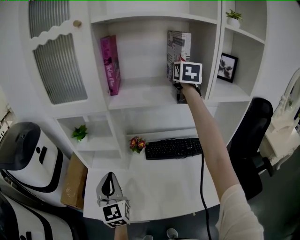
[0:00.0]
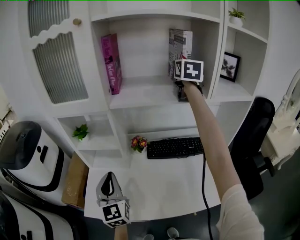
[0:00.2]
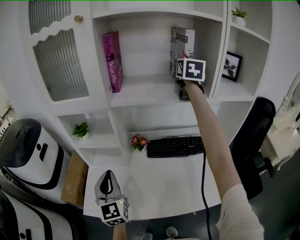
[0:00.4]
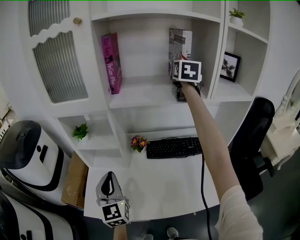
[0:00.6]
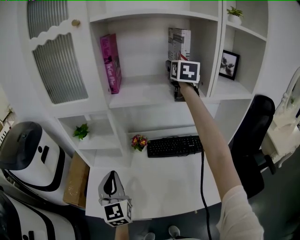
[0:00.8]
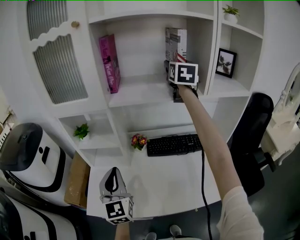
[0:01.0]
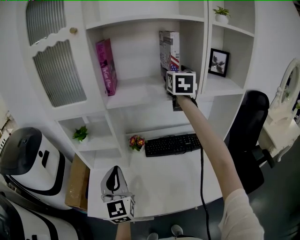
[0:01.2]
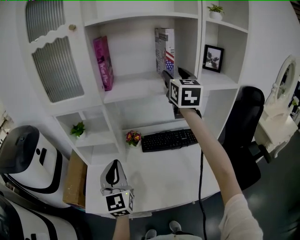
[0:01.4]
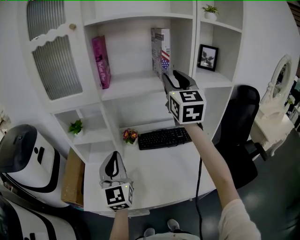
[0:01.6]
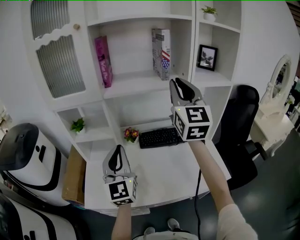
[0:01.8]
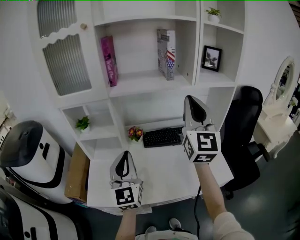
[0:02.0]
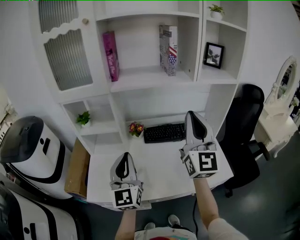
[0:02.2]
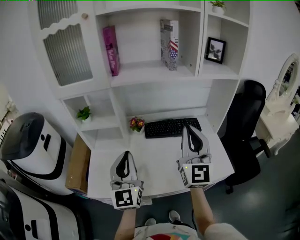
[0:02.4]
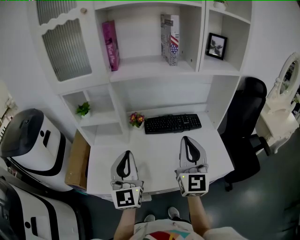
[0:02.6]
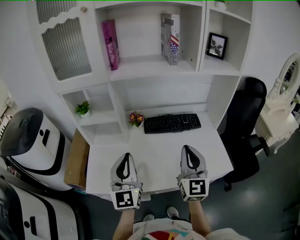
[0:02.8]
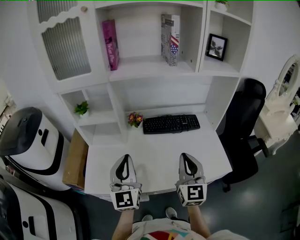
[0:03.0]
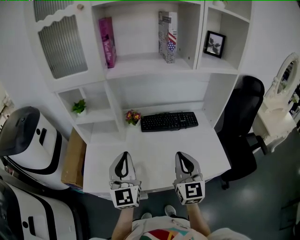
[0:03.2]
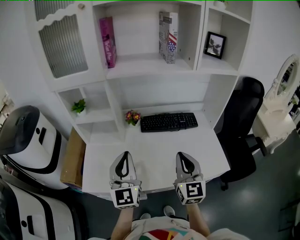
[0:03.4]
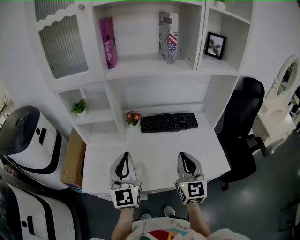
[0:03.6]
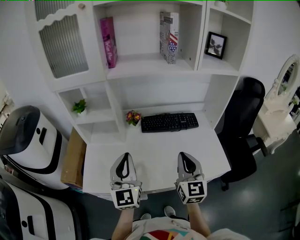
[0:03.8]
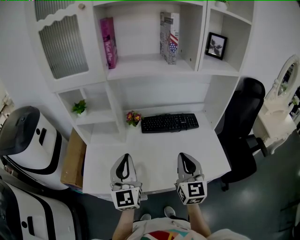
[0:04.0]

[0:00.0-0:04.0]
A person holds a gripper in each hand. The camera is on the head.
0:00.0 to 0:01.4: The left gripper ends up about 5 cm from where it was; the right gripper goes roughly 15 cm backward.
0:01.4 to 0:02.6: The left gripper moves backward, some 5 cm; the right gripper moves backward and downward, approximately 35 cm, and closes up.
0:02.6 to 0:04.0: The right gripper travels downward by approximately 10 cm.

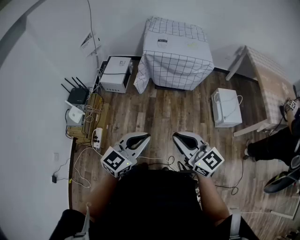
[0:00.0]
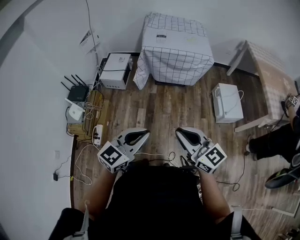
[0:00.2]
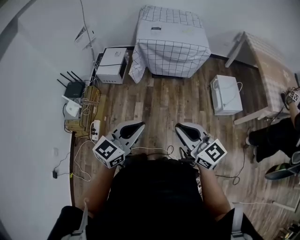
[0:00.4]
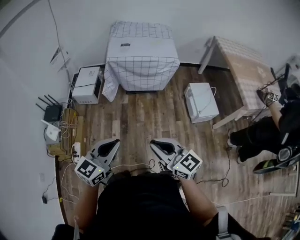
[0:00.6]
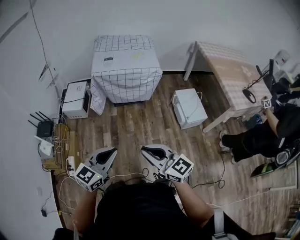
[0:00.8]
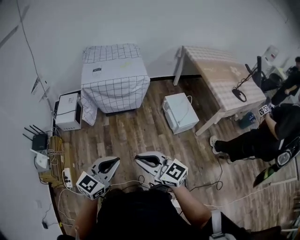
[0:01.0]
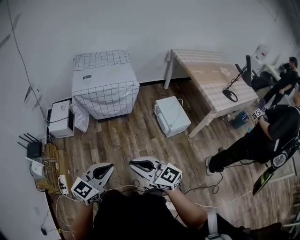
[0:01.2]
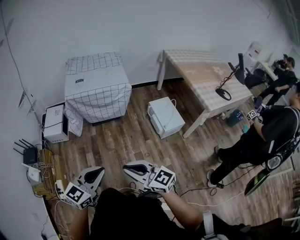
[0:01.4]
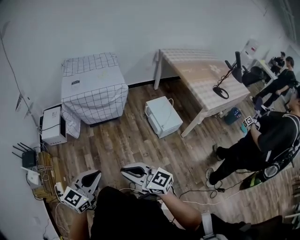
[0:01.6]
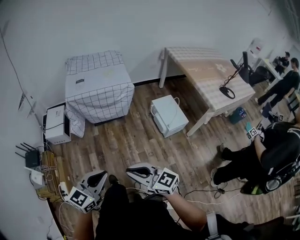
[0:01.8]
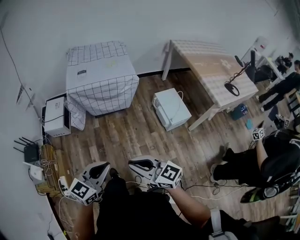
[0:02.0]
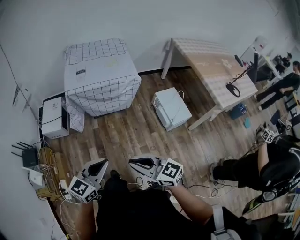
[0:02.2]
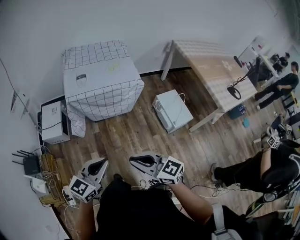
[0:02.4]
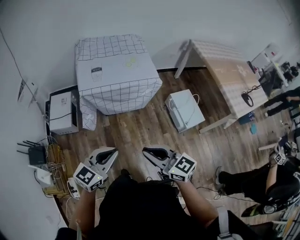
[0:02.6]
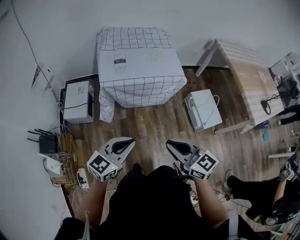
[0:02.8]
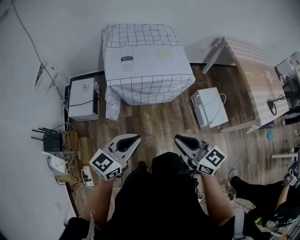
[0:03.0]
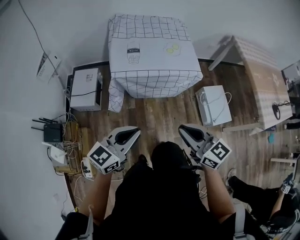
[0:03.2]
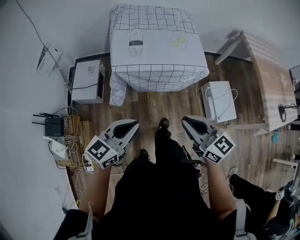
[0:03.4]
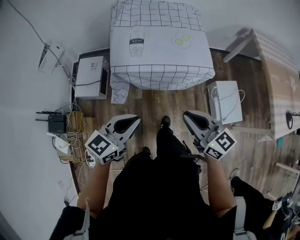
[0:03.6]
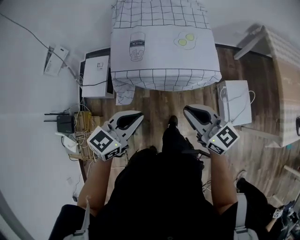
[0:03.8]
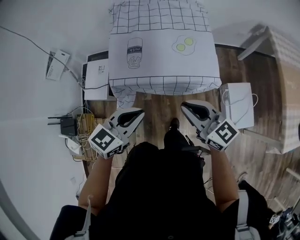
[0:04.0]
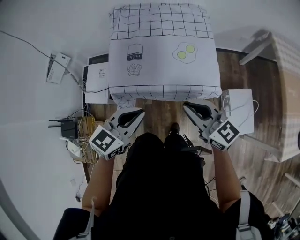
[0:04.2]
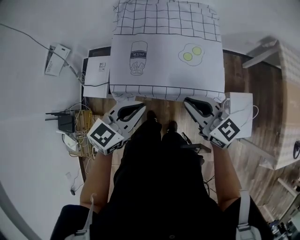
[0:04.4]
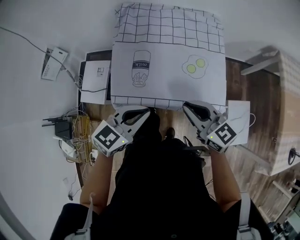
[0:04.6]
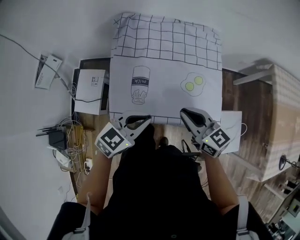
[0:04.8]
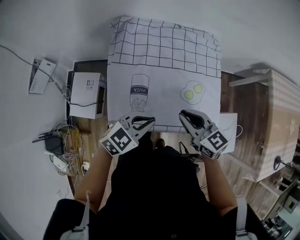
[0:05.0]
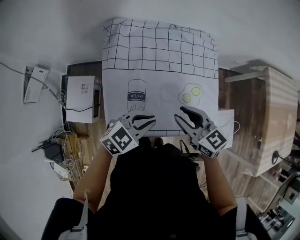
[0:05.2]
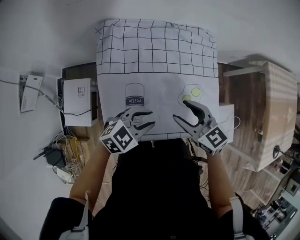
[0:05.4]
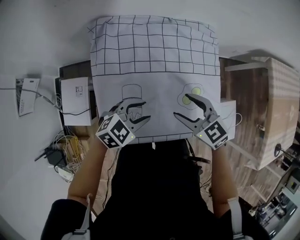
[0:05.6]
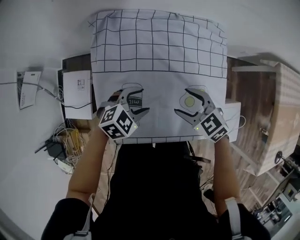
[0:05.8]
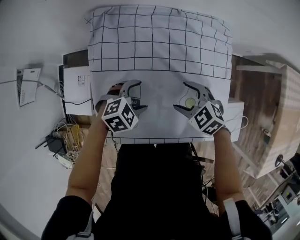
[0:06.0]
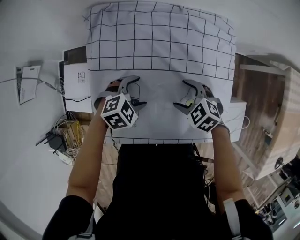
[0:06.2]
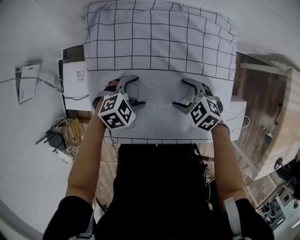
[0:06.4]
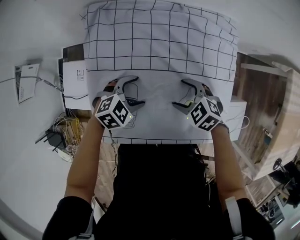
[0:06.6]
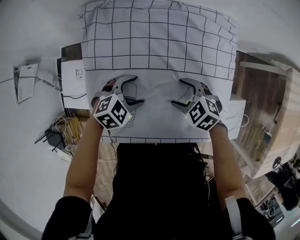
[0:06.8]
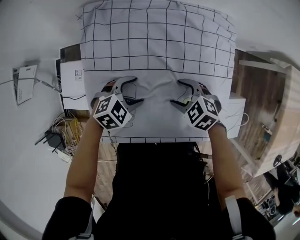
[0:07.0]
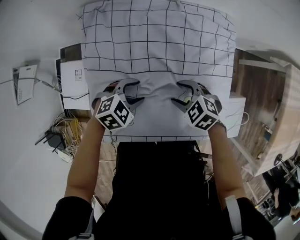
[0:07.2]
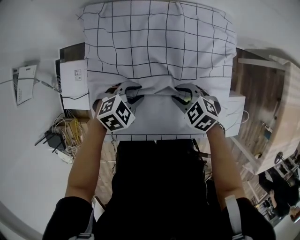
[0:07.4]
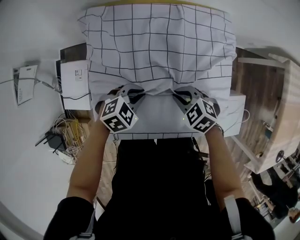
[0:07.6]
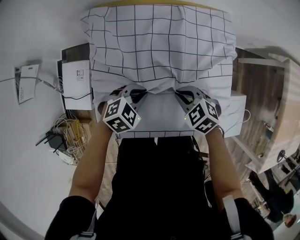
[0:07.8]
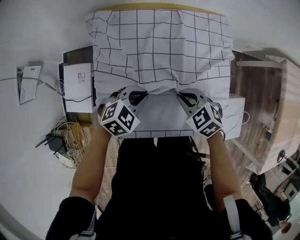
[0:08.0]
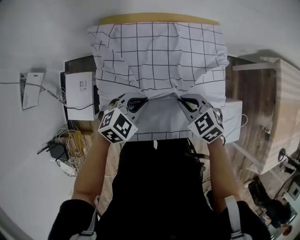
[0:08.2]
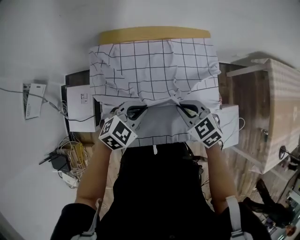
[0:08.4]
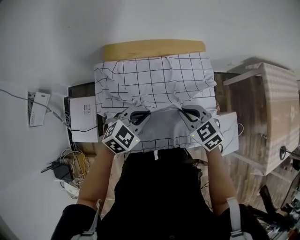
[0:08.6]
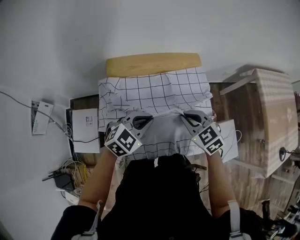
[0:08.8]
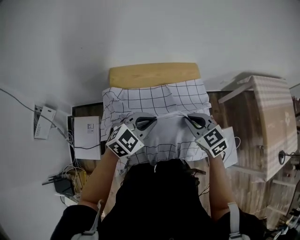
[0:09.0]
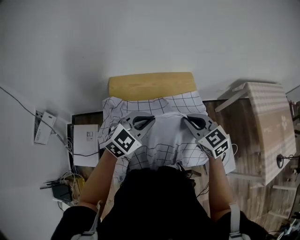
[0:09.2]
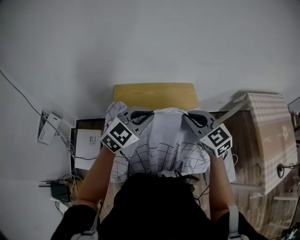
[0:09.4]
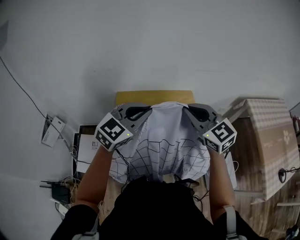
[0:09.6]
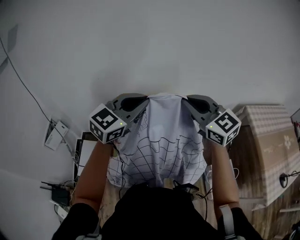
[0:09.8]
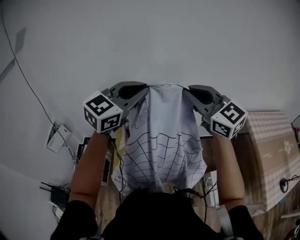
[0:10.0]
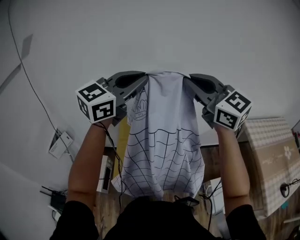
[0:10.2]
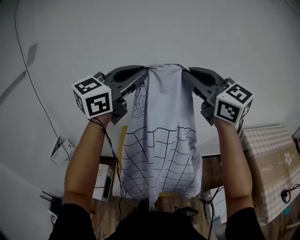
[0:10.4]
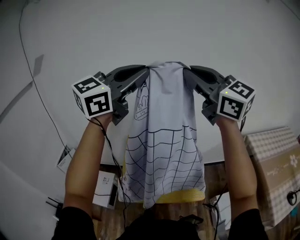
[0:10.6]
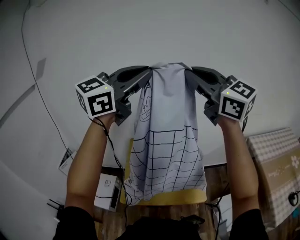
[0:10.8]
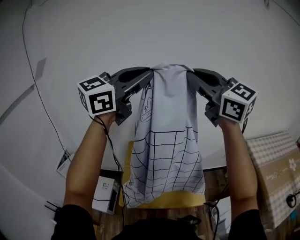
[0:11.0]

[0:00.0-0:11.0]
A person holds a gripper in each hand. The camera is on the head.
0:00.0 to 0:01.6: Both grippers travel together to the right, approximately 15 cm.
0:01.6 to 0:03.2: The left gripper heads forward and to the left, covering approximately 40 cm. The right gripper shifts some 35 cm forward.
0:03.2 to 0:04.8: Both grippers move forward, approximately 40 cm. The left gripper changes its angle by approximately 20 degrees.
0:04.8 to 0:06.2: The right gripper shifts about 20 cm downward, angles its fingers downward, by roughly 40 degrees, and opens its fingers. The left gripper ends up approximately 30 cm from where it was, angles its fingers downward, by some 30 degrees, and opens.
0:06.2 to 0:07.8: The right gripper closes, while the left gripper closes its fingers.
0:07.8 to 0:09.4: Both grippers move upward, approximately 35 cm. The left gripper angles its fingers upward, by roughly 40 degrees. Meanwhile the right gripper tips its fingers upward by some 40 degrees.
0:09.4 to 0:11.0: The grippers both shift upward by some 25 cm. The left gripper rotates roughly 20 degrees; the right gripper tips its fingers upward by about 30 degrees.

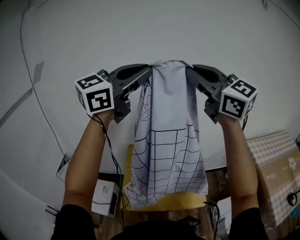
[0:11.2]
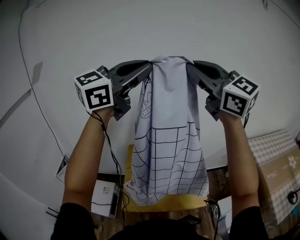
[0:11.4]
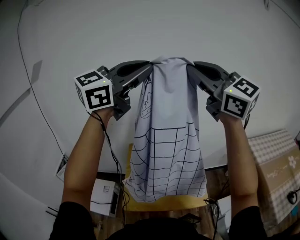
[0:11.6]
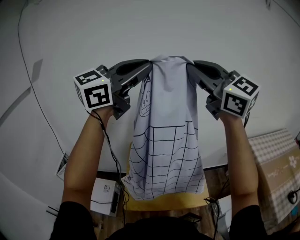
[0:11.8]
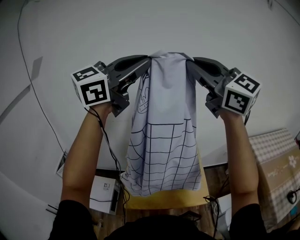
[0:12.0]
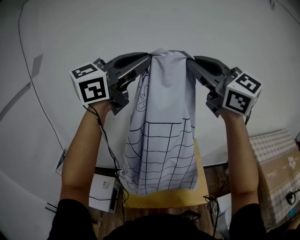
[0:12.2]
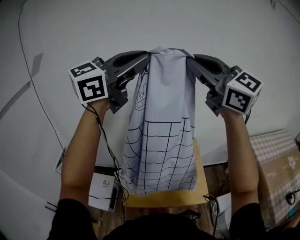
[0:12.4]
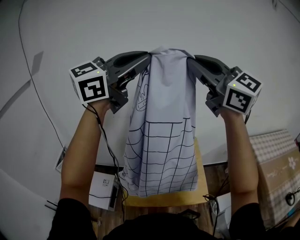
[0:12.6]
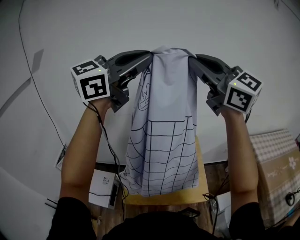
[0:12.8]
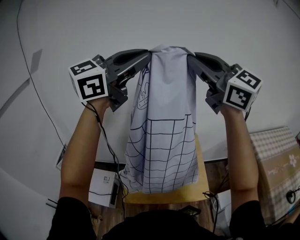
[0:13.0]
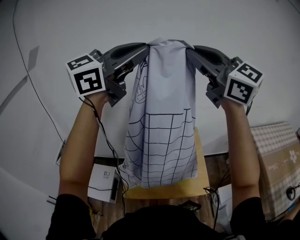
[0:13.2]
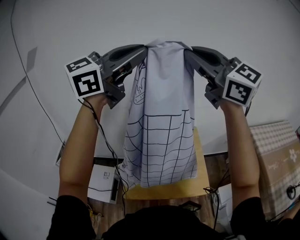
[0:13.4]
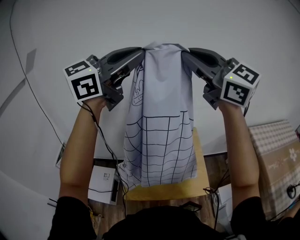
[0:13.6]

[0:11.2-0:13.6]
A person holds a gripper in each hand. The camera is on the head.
0:11.2 to 0:12.4: The grippers move only a little.
0:12.4 to 0:13.6: Neither gripper changes place.

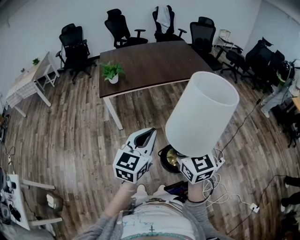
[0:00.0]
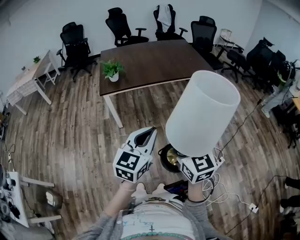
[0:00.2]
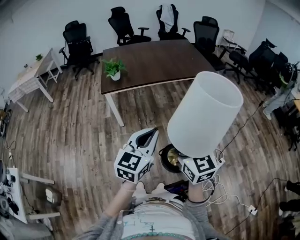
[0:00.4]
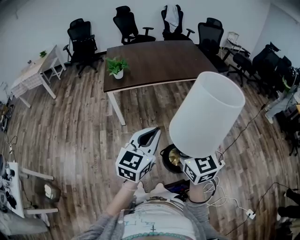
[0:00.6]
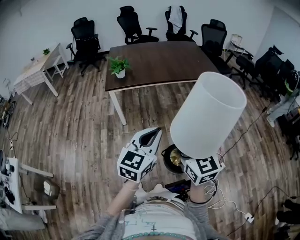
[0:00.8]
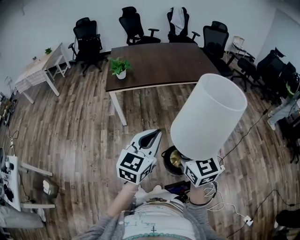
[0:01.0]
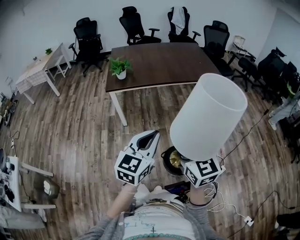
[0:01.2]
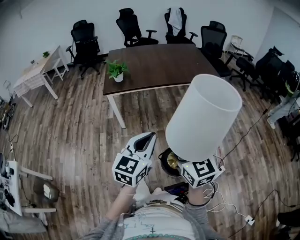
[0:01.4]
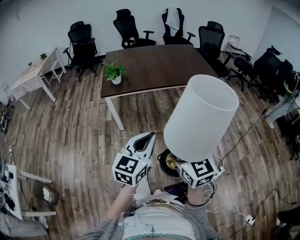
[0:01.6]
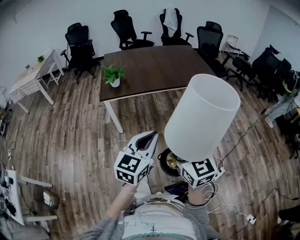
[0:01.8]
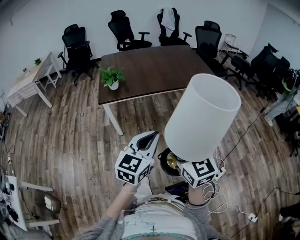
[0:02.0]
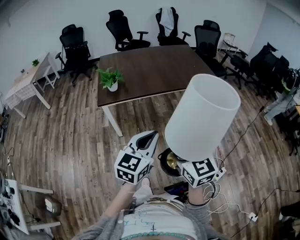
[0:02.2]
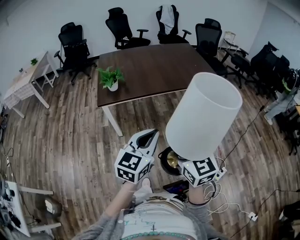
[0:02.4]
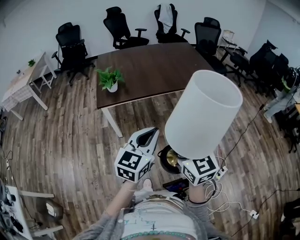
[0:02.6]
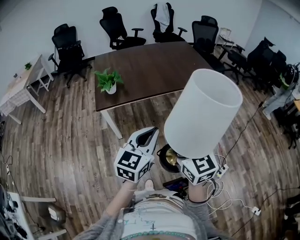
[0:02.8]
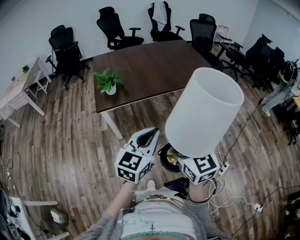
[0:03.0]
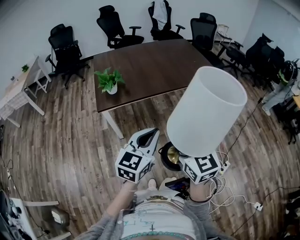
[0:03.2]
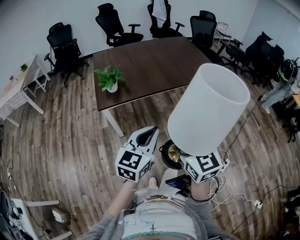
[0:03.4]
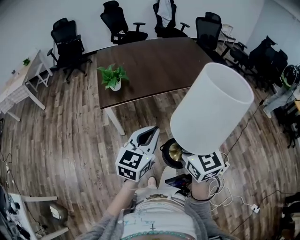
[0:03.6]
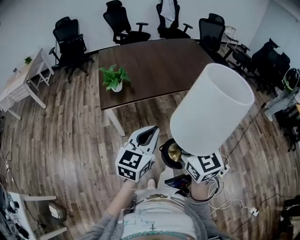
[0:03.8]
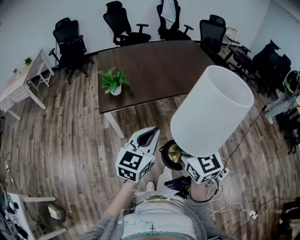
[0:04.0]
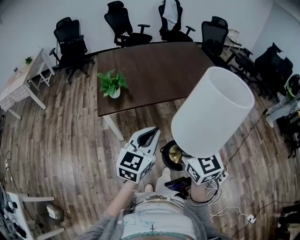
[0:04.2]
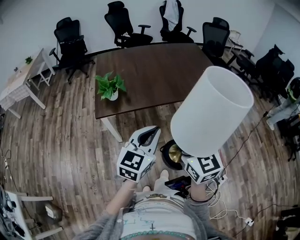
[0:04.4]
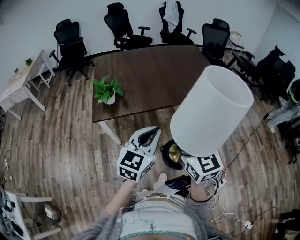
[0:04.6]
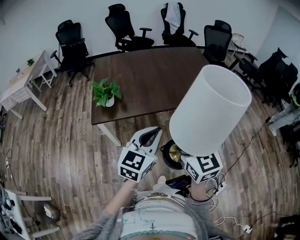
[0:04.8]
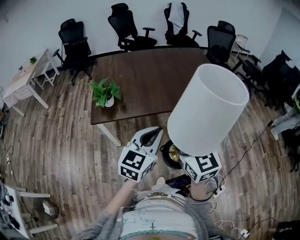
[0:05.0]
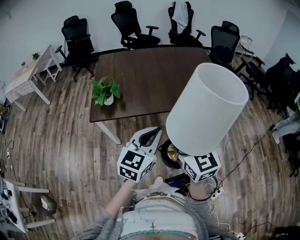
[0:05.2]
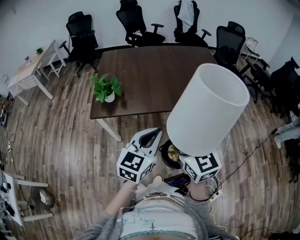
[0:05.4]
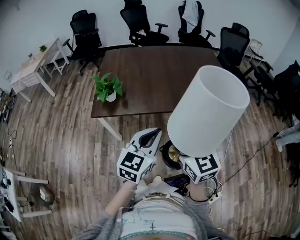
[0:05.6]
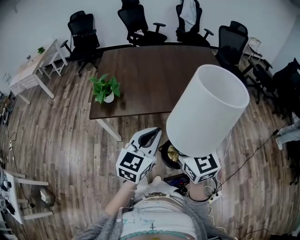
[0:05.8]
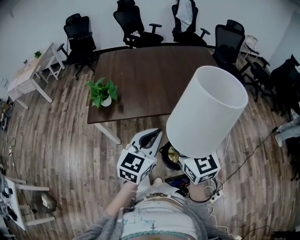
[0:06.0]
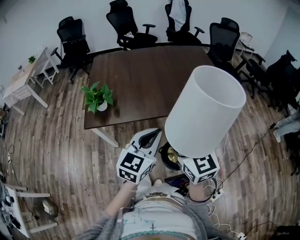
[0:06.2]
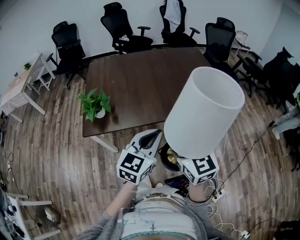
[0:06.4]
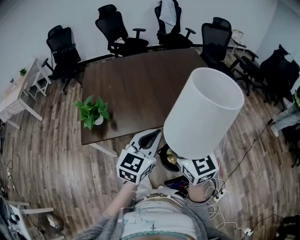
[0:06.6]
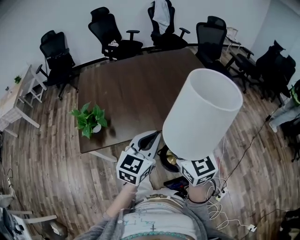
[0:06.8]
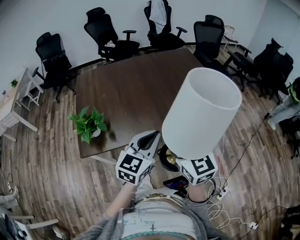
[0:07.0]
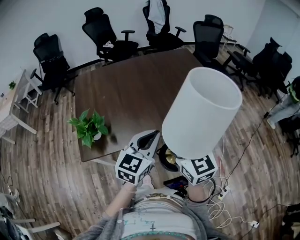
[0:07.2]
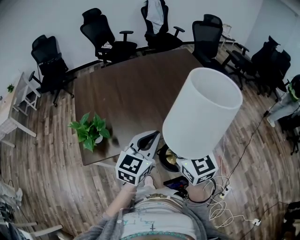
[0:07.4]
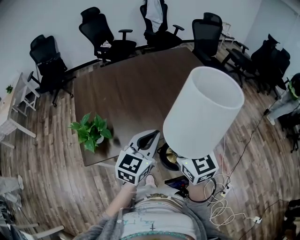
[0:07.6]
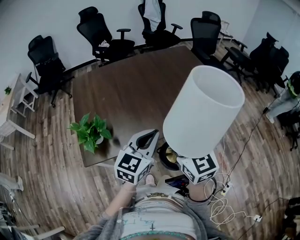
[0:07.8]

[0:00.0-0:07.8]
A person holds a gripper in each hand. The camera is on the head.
0:00.0 to 0:01.6: There are only small adjustments of the grippers.
0:01.6 to 0:03.2: Both grippers move forward and to the left, about 20 cm.
0:03.2 to 0:04.6: Both grippers travel together forward, approximately 15 cm.
0:04.6 to 0:06.2: Both grippers travel together forward and to the right, approximately 15 cm.
0:06.2 to 0:07.8: Both grippers travel together forward and to the left, approximately 15 cm.
